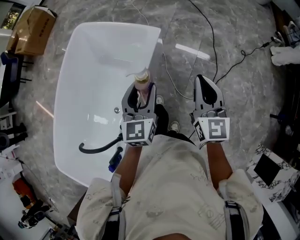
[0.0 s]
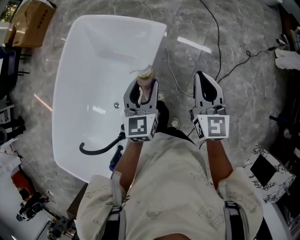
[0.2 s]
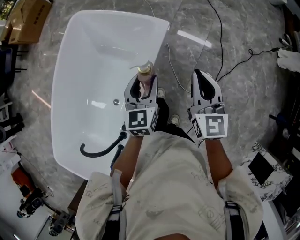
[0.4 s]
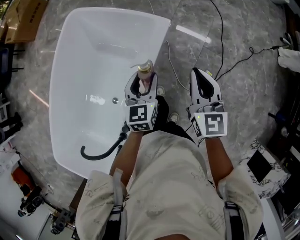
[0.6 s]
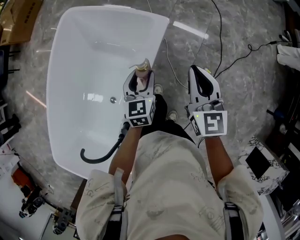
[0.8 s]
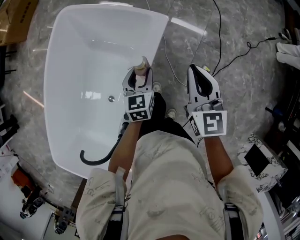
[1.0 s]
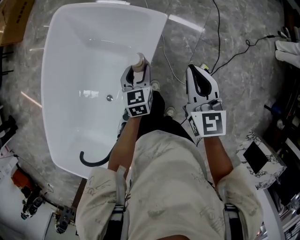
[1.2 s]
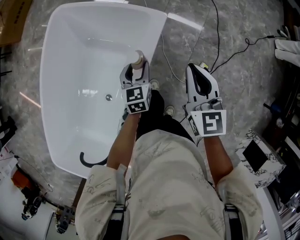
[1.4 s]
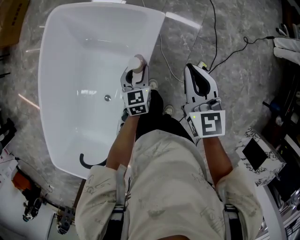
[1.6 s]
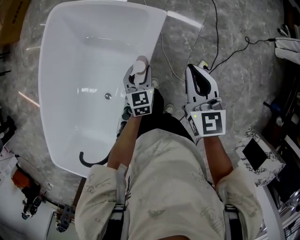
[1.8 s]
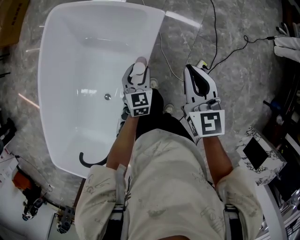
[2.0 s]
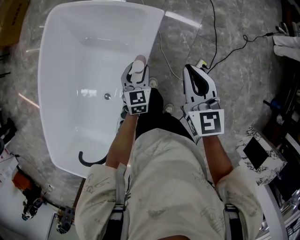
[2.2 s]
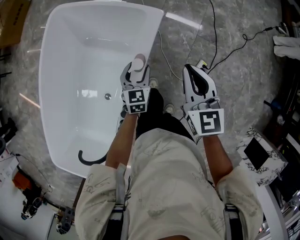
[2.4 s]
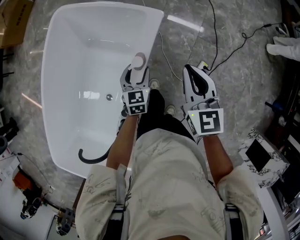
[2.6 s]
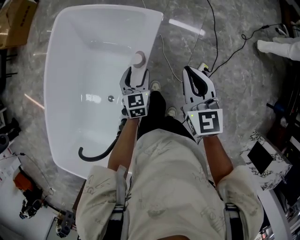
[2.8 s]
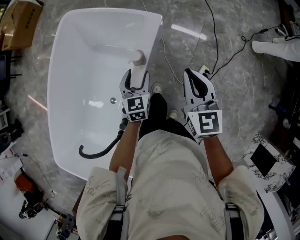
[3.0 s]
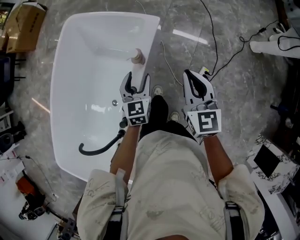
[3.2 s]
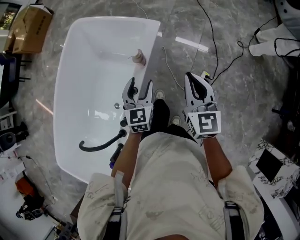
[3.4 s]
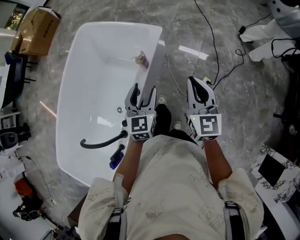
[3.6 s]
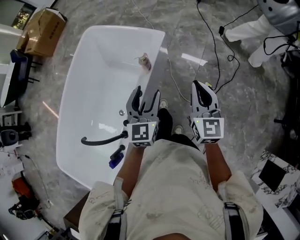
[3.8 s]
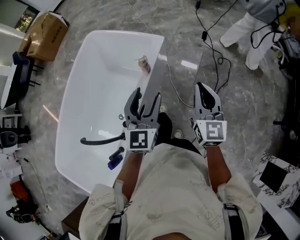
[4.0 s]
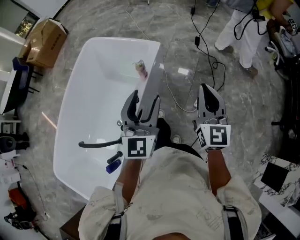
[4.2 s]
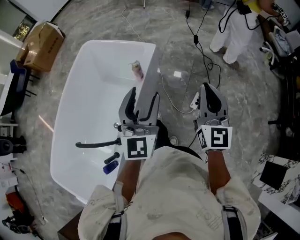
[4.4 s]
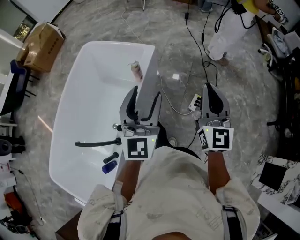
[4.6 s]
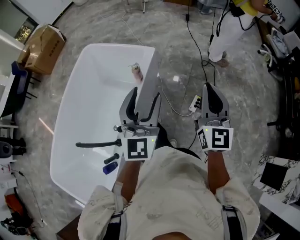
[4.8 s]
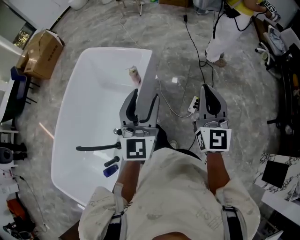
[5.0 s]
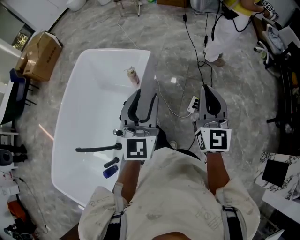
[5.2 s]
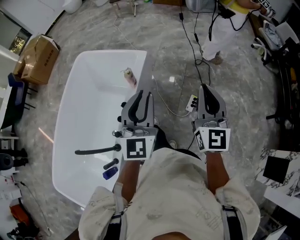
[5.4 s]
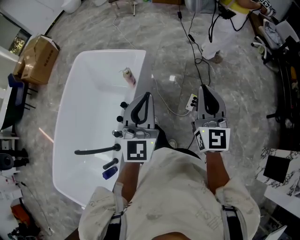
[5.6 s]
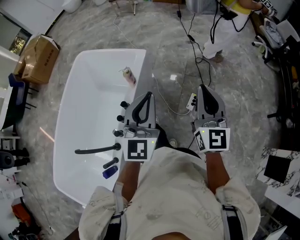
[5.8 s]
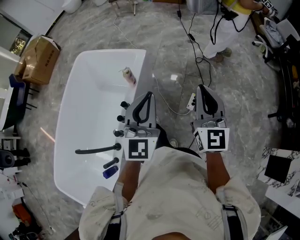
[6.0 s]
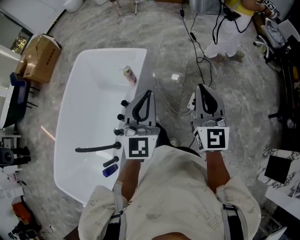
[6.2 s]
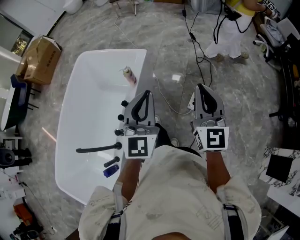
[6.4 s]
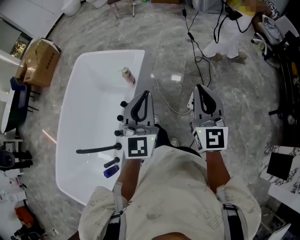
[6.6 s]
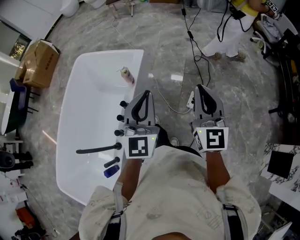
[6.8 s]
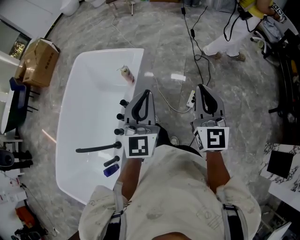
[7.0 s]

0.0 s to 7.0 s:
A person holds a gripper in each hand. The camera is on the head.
0.0 to 1.4 s: The right gripper shifts about 20 cm forward, to the left and downward. Meanwhile the left gripper goes roughly 30 cm downward and forward.
1.4 to 2.8 s: Both grippers travel together backward, some 5 cm.
2.8 to 4.2 s: The right gripper heads backward, upward and to the right, covering approximately 25 cm, and turns by about 20 degrees. The left gripper is displaced upward and backward by approximately 40 cm, and angles its fingers upward, by roughly 30 degrees.
4.2 to 5.6 s: Both grippers move to the right, approximately 5 cm. The left gripper closes.
5.6 to 7.0 s: The grippers stay close to where they were, moving slightly.

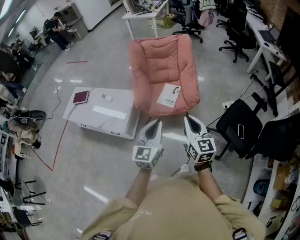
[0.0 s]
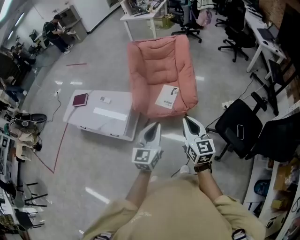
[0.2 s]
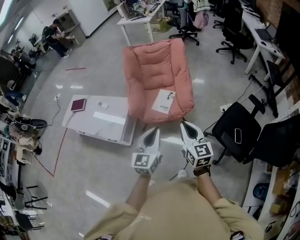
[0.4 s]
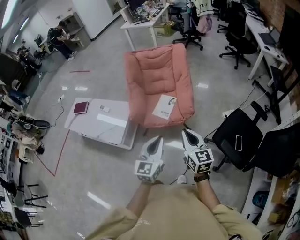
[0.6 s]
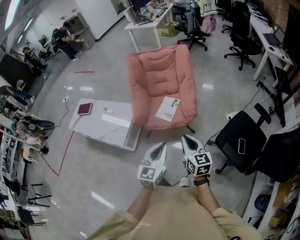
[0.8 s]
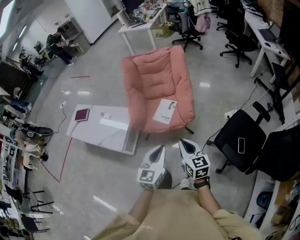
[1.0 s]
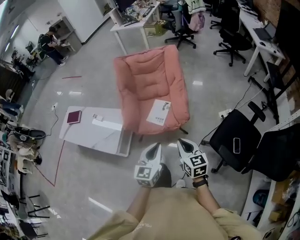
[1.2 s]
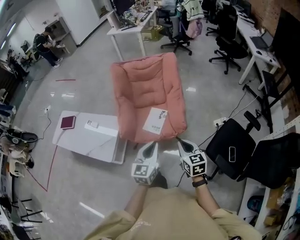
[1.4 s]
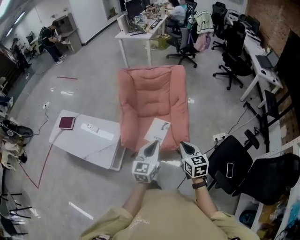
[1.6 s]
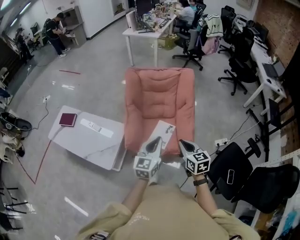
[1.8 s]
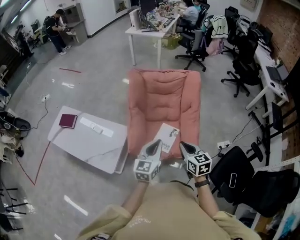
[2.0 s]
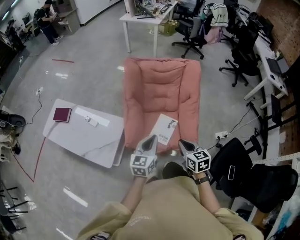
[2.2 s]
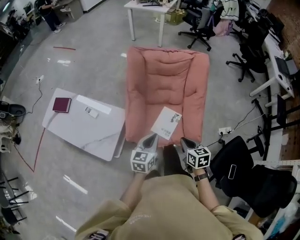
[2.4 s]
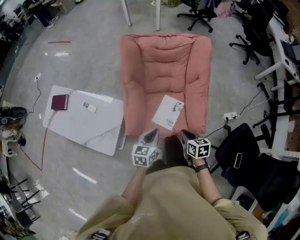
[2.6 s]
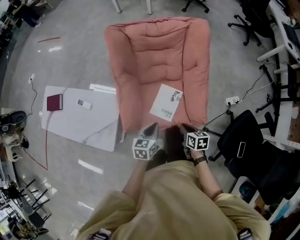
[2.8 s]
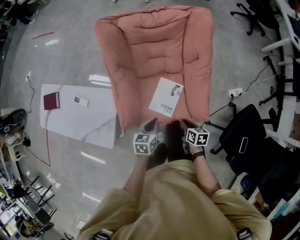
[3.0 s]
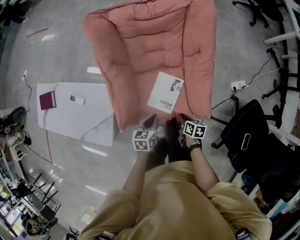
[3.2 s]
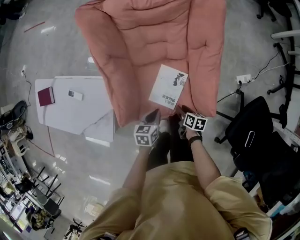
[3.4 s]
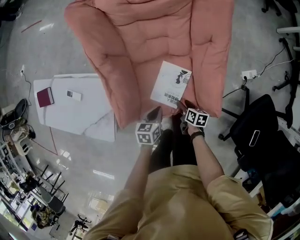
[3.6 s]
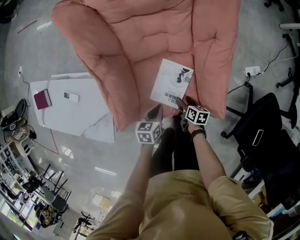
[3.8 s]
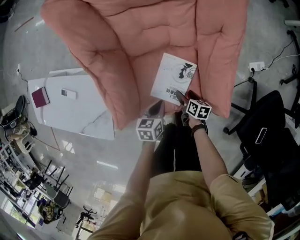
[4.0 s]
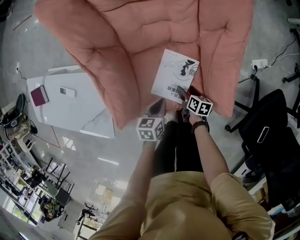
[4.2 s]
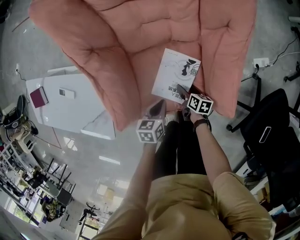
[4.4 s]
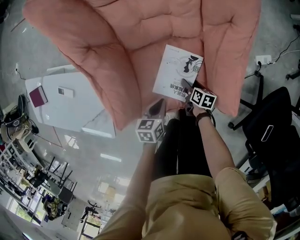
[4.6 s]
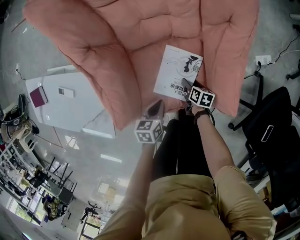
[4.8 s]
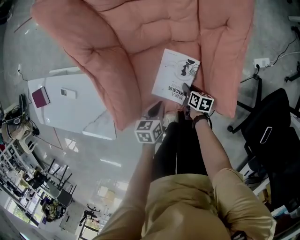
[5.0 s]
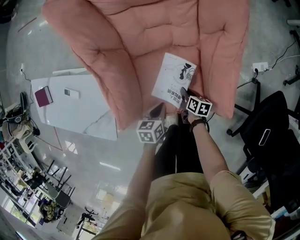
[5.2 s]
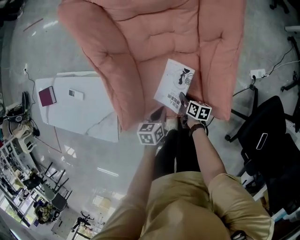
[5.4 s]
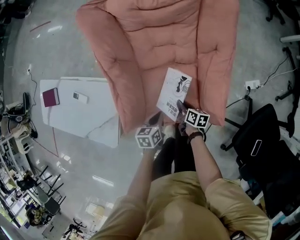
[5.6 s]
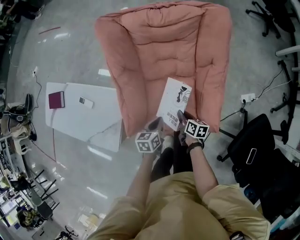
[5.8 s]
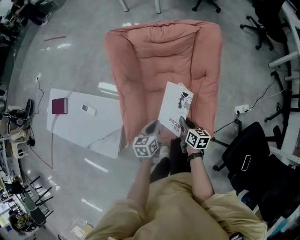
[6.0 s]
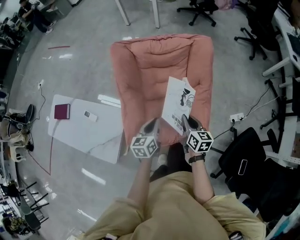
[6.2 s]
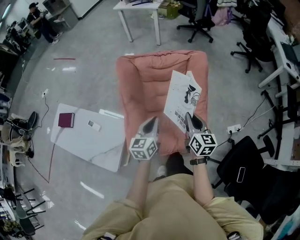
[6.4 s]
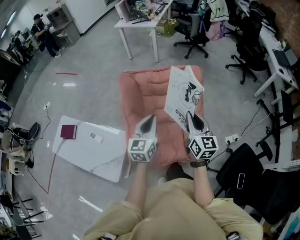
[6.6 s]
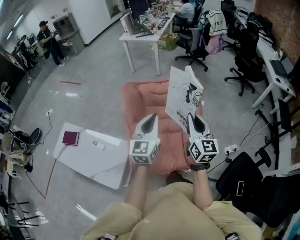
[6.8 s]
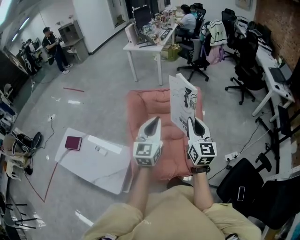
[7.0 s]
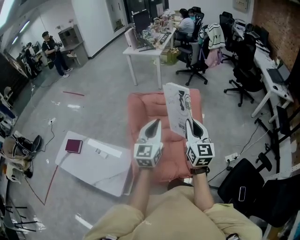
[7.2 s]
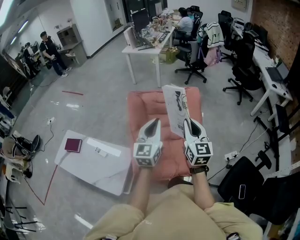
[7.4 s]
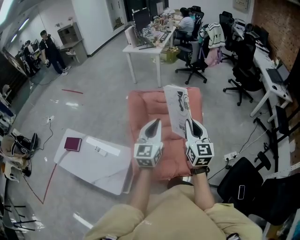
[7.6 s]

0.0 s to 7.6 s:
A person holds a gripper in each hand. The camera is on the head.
0.0 to 1.6 s: The two grippers go roughly 25 cm forward.
1.6 to 3.0 s: Both grippers move downward and forward, roughly 40 cm. The right gripper rotates some 40 degrees. The left gripper points its fingers some 30 degrees further downward.
3.0 to 4.6 s: The grippers both shift downward by approximately 25 cm. The right gripper opens.
4.6 to 6.0 s: Both grippers travel together upward, about 30 cm. The right gripper swivels about 30 degrees, and closes its fingers. Meanwhile the left gripper changes its angle by roughly 20 degrees.
6.0 to 7.6 s: Both grippers travel together upward, about 40 cm. The left gripper angles its fingers upward, by some 40 degrees, while the right gripper tilts its fingers approximately 30 degrees upward.

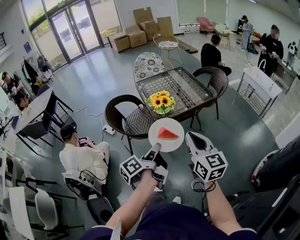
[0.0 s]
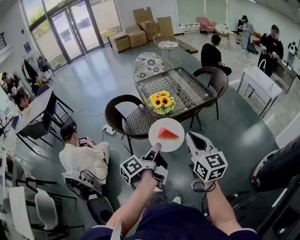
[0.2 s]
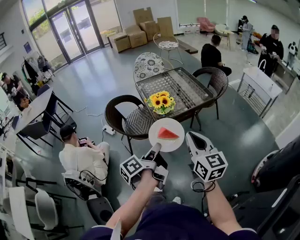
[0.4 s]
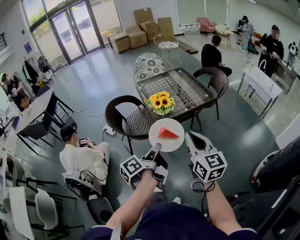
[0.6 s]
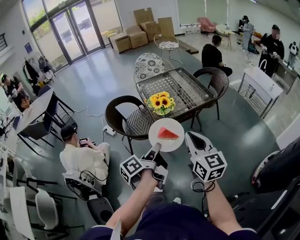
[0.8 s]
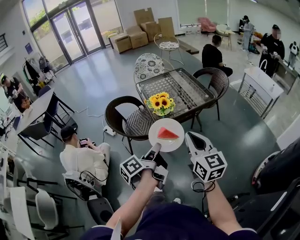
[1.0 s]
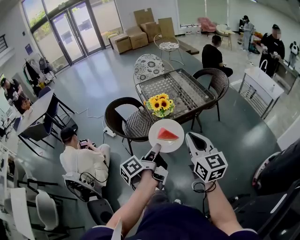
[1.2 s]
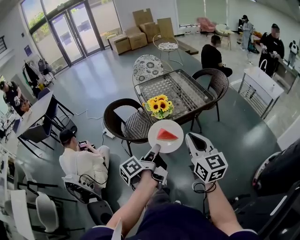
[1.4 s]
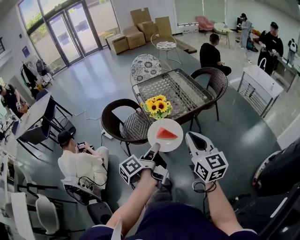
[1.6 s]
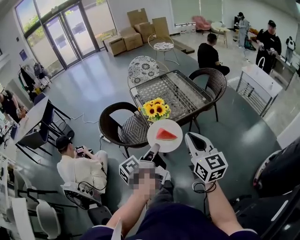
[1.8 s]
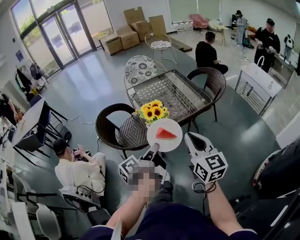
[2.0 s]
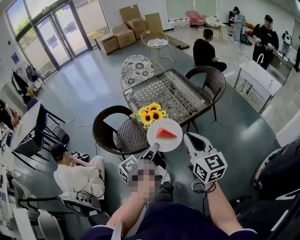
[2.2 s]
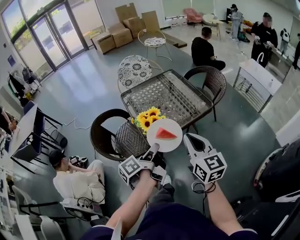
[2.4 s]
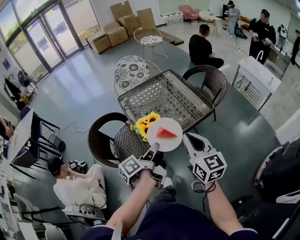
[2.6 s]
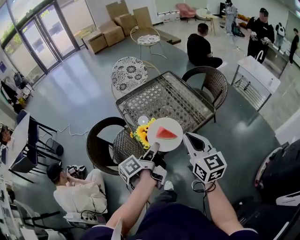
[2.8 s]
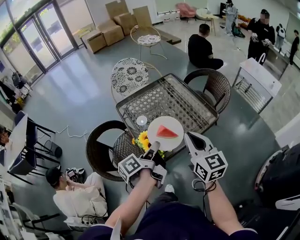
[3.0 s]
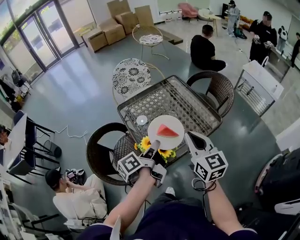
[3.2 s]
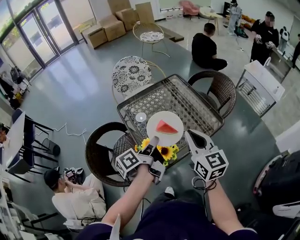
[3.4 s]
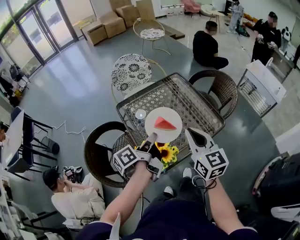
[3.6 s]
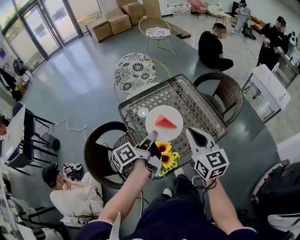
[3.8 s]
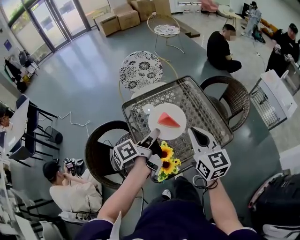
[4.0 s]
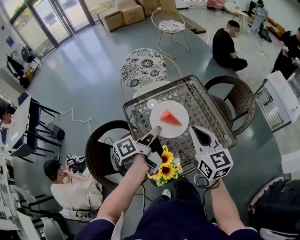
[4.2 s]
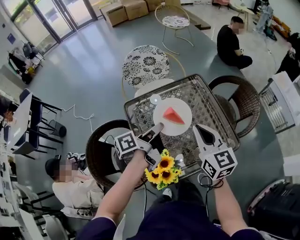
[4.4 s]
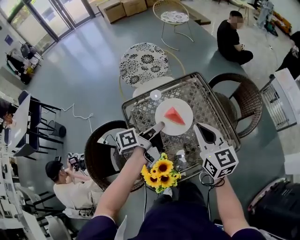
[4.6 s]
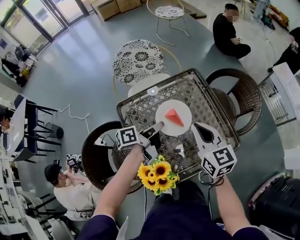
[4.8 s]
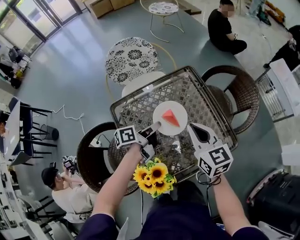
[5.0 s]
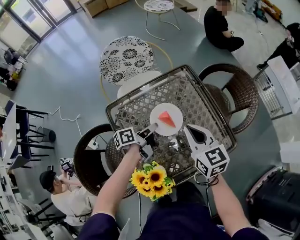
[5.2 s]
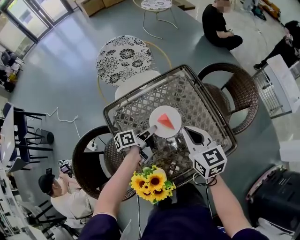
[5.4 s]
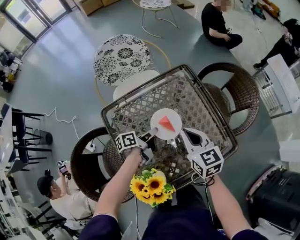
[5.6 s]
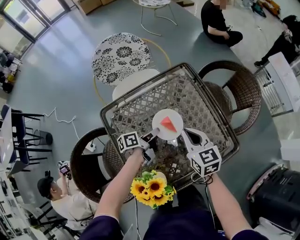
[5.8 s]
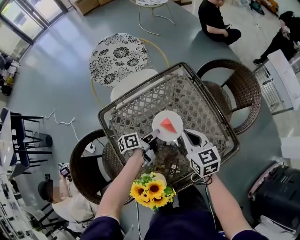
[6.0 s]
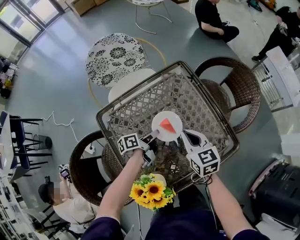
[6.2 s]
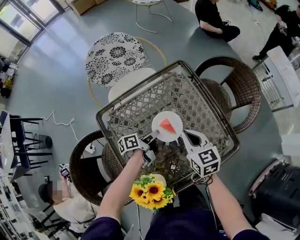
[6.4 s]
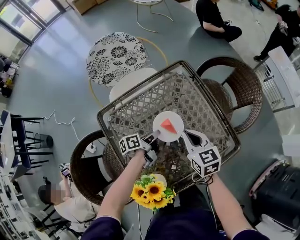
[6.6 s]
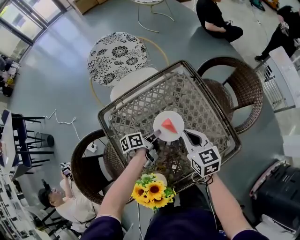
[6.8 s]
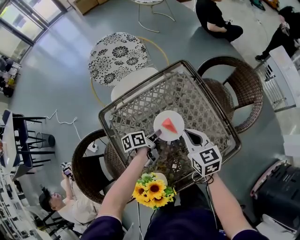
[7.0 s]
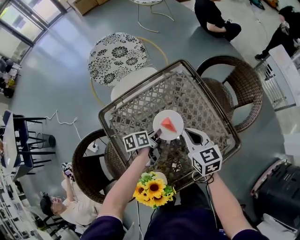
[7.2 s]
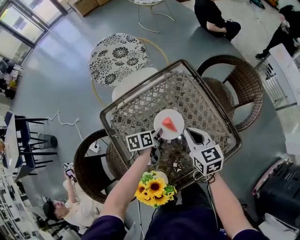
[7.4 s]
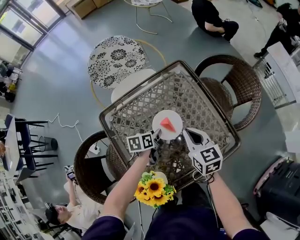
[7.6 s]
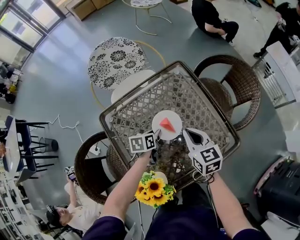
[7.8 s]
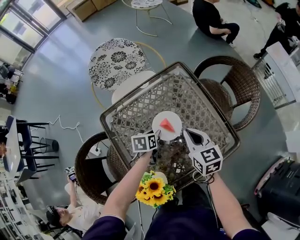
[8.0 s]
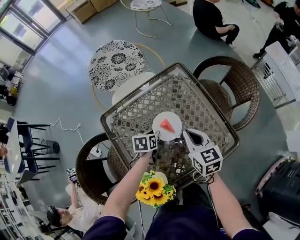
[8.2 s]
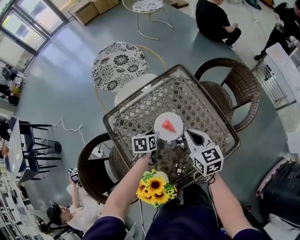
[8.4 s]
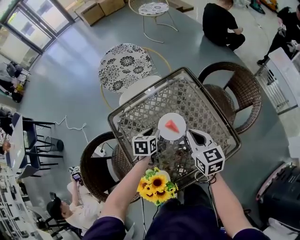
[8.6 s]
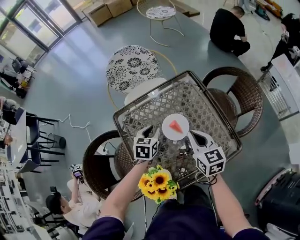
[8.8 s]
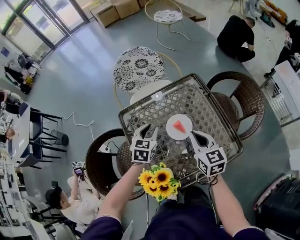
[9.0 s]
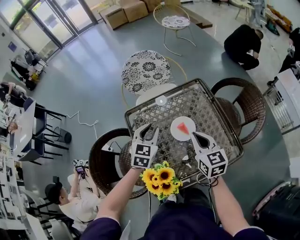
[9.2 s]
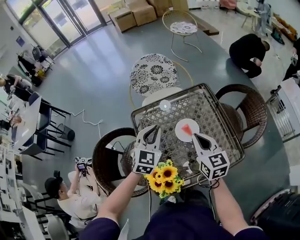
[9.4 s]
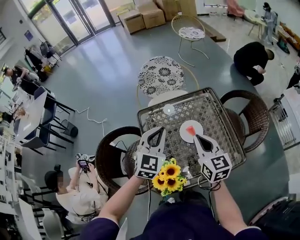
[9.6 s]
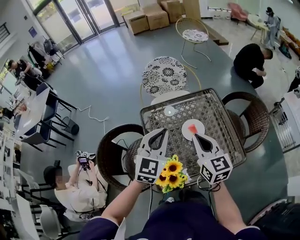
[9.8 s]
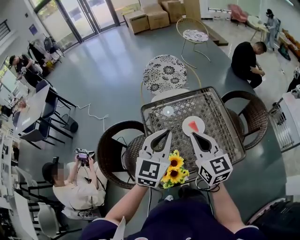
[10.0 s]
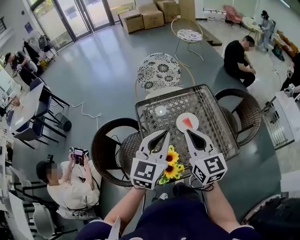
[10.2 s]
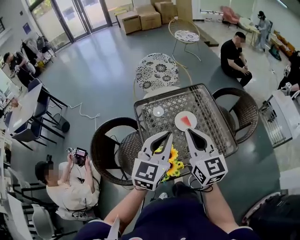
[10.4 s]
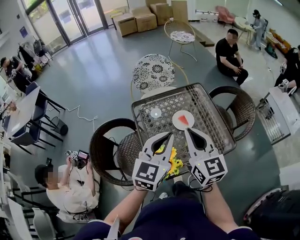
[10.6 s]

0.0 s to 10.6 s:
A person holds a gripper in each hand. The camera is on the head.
0.0 to 1.6 s: Both grippers travel together forward, about 5 cm.
1.6 to 3.0 s: The two grippers go approximately 30 cm forward.
3.0 to 4.6 s: Both grippers travel together forward, about 30 cm.
4.6 to 6.0 s: Both grippers travel together downward, approximately 20 cm.
6.0 to 7.6 s: The left gripper swivels some 40 degrees.
7.6 to 9.0 s: The right gripper heads upward, covering roughly 5 cm. Meanwhile the left gripper is displaced upward by some 15 cm, and turns by some 50 degrees.
9.0 to 10.6 s: The left gripper moves upward and backward, approximately 30 cm, turns by approximately 30 degrees, and closes up. Meanwhile the right gripper goes roughly 25 cm upward, backward and to the left, and turns by some 20 degrees.
